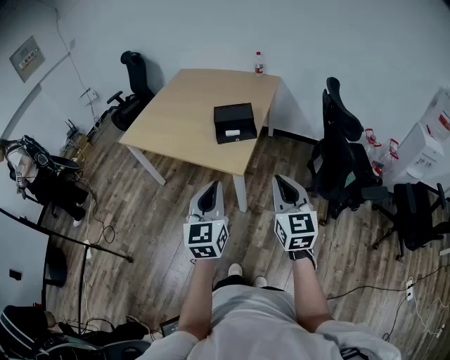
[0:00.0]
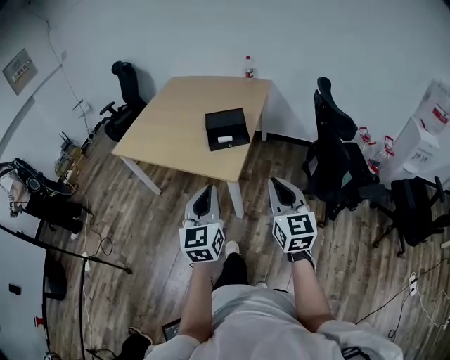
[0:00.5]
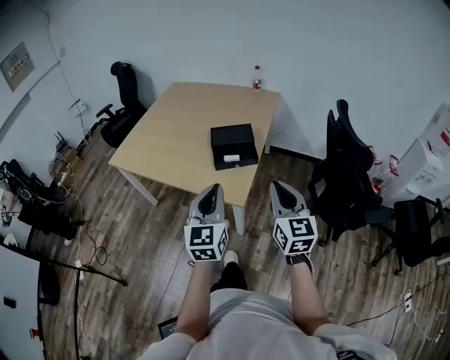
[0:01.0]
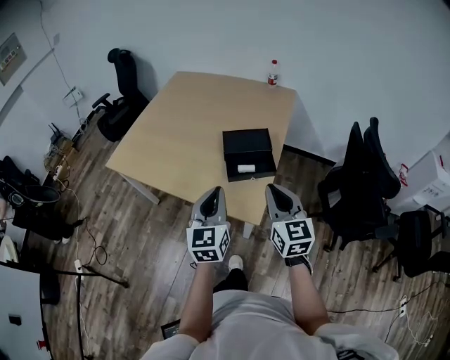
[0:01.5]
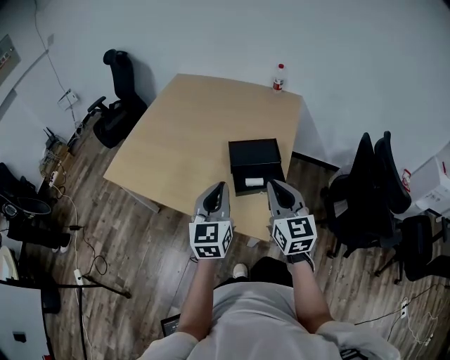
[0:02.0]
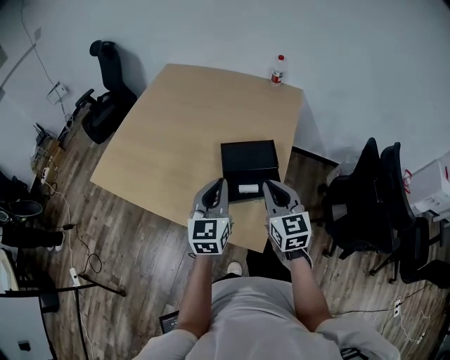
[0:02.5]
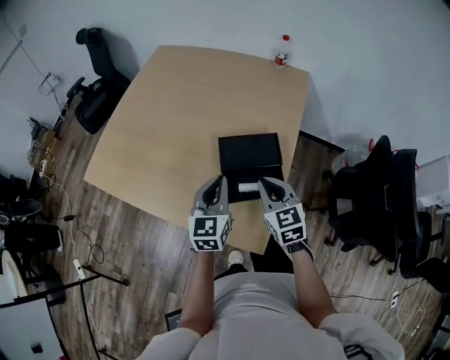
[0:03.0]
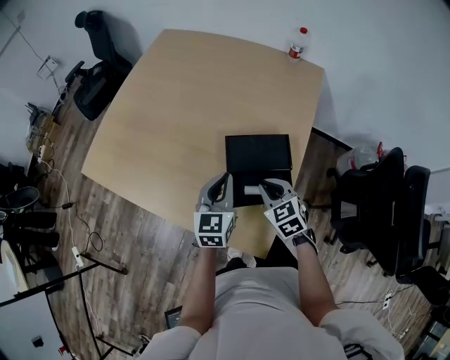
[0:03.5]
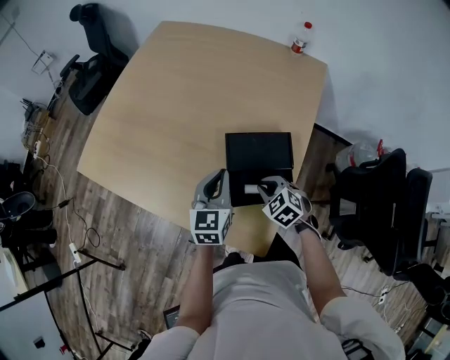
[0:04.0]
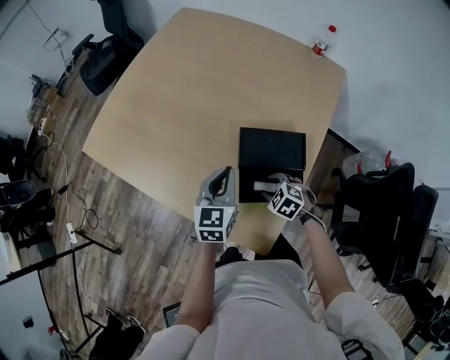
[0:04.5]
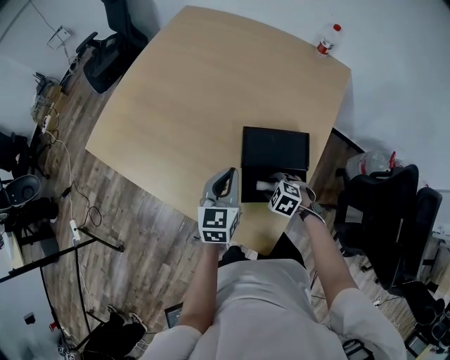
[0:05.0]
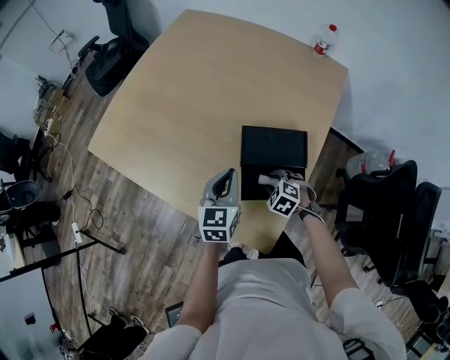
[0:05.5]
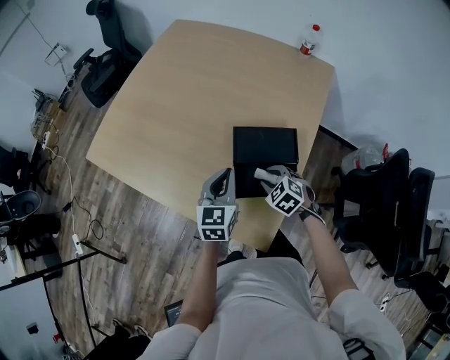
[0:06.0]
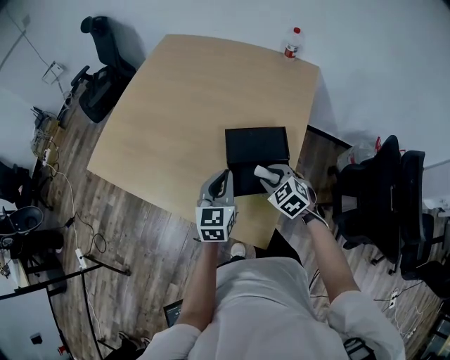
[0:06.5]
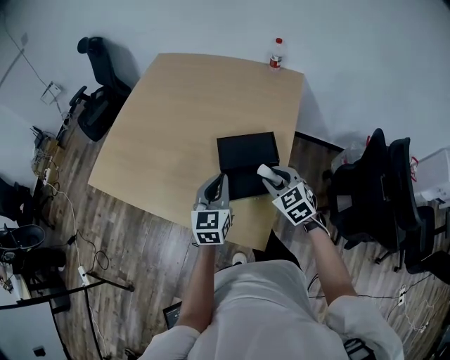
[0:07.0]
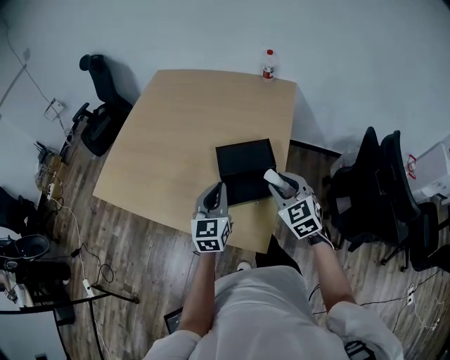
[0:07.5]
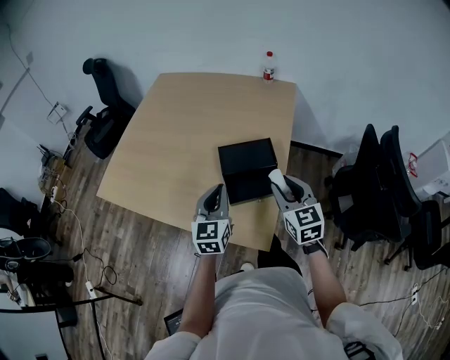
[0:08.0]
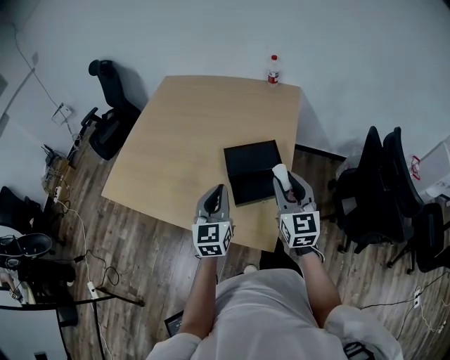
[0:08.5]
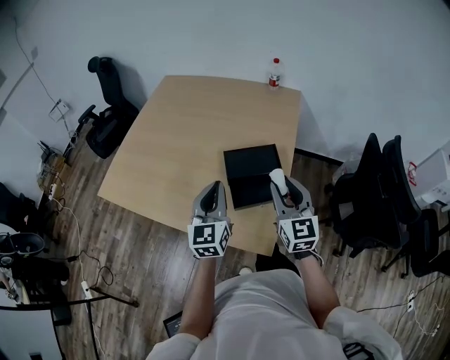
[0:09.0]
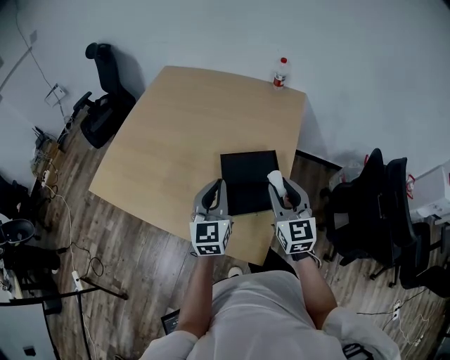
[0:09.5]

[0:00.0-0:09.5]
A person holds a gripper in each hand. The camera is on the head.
0:00.0 to 0:02.0: Both grippers move forward, some 35 cm.
0:02.0 to 0:04.0: The right gripper goes roughly 35 cm downward and forward, and angles its fingers downward, by approximately 50 degrees. Meanwhile the left gripper heads forward and downward, covering about 25 cm.
0:04.0 to 0:05.5: The right gripper travels downward by some 5 cm, and opens its fingers.
0:05.5 to 0:07.5: The right gripper goes some 25 cm upward, and angles its fingers upward, by about 40 degrees. Meanwhile the left gripper travels upward and backward by roughly 10 cm.
0:07.5 to 0:09.5: The left gripper changes place by some 5 cm, while the right gripper shifts by roughly 5 cm, and turns by approximately 30 degrees.

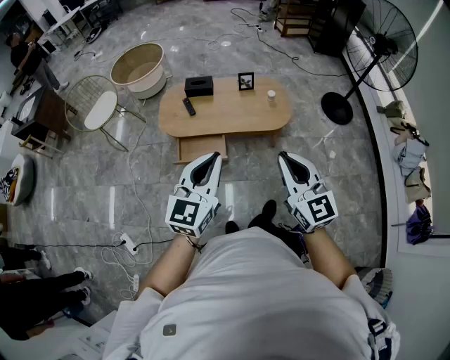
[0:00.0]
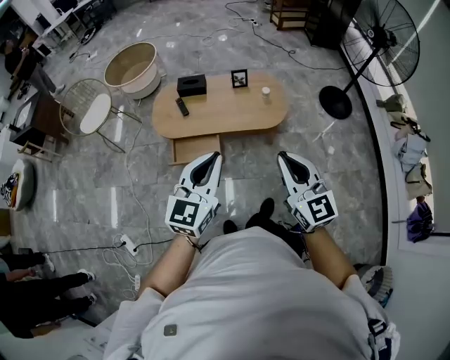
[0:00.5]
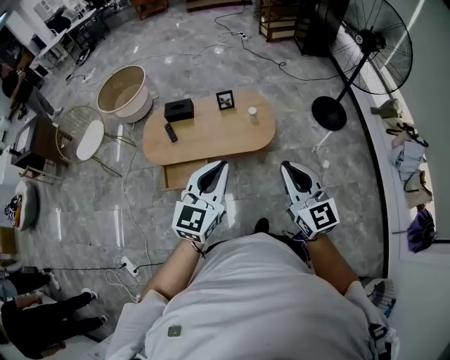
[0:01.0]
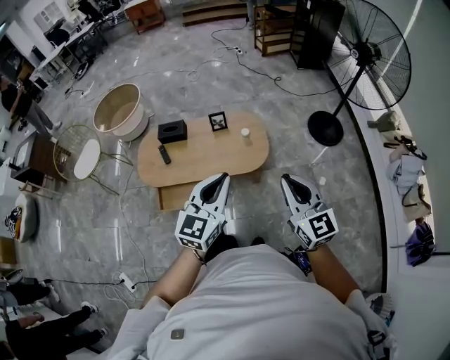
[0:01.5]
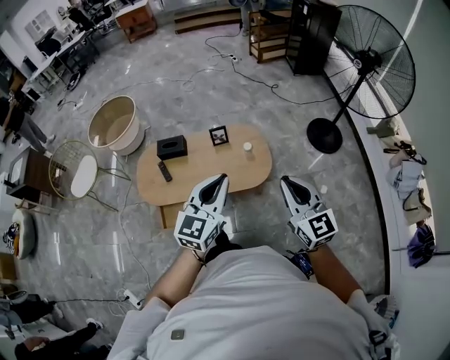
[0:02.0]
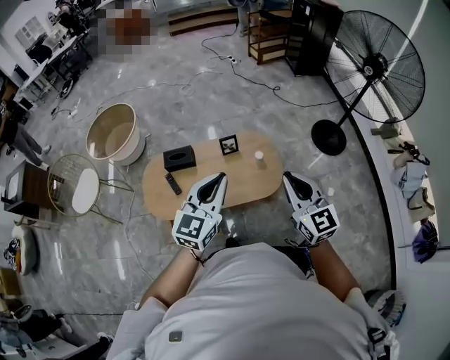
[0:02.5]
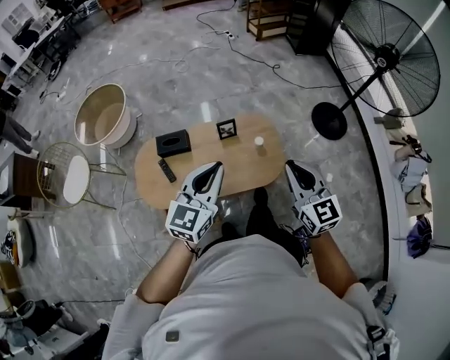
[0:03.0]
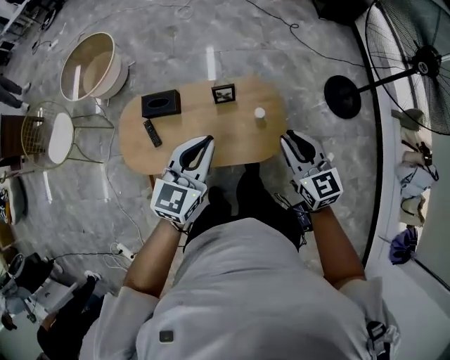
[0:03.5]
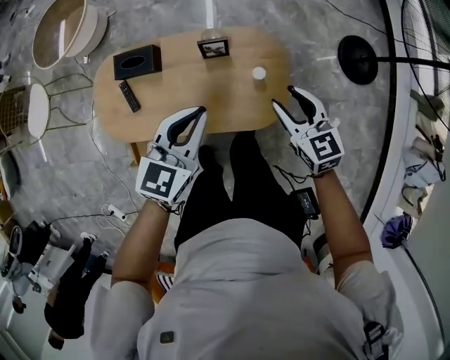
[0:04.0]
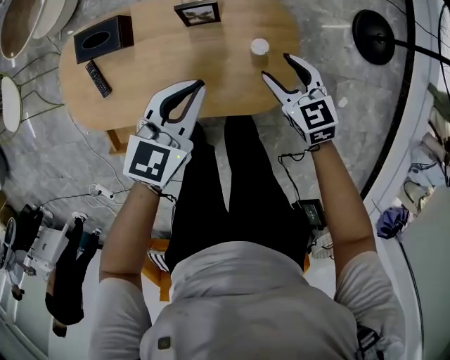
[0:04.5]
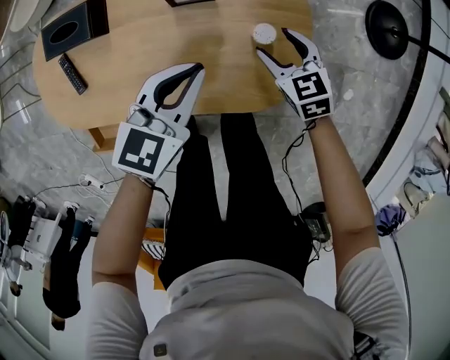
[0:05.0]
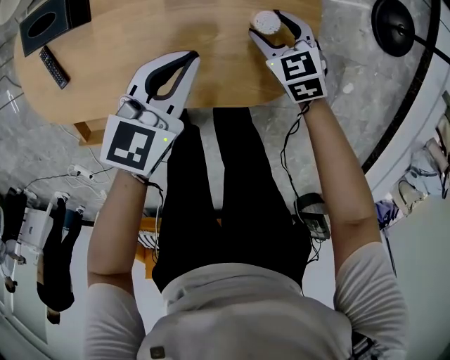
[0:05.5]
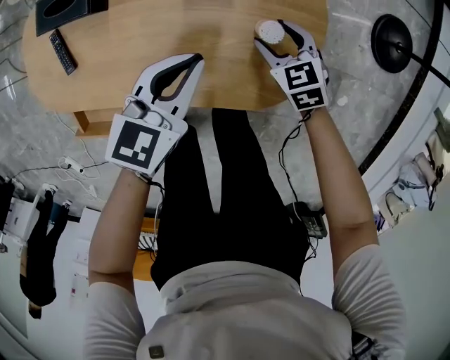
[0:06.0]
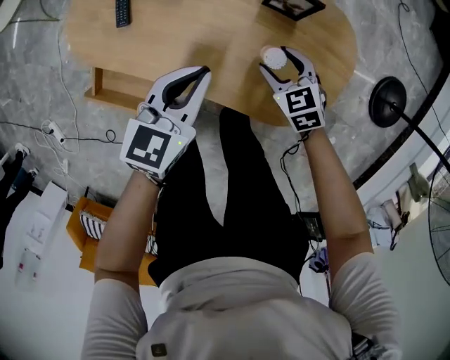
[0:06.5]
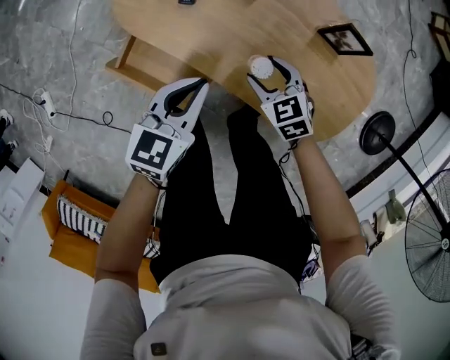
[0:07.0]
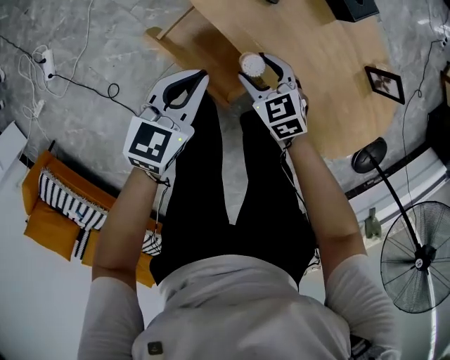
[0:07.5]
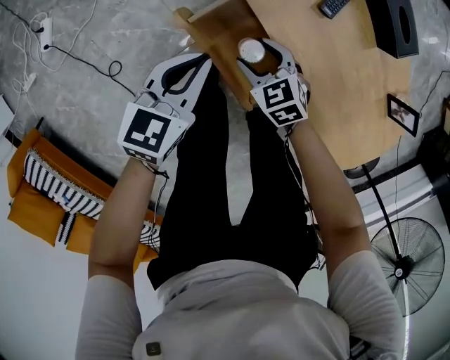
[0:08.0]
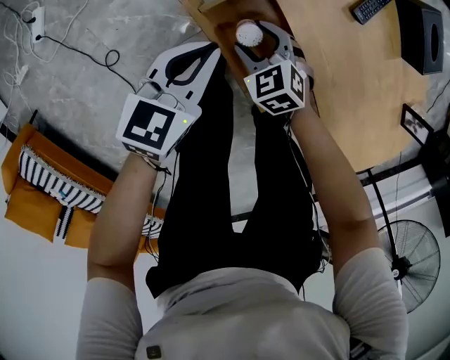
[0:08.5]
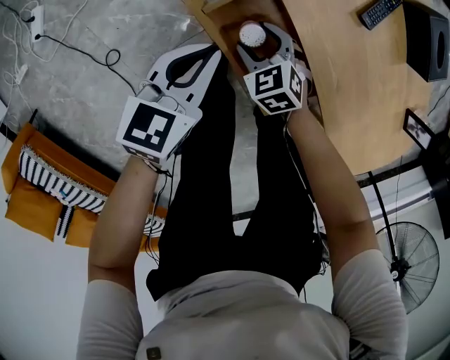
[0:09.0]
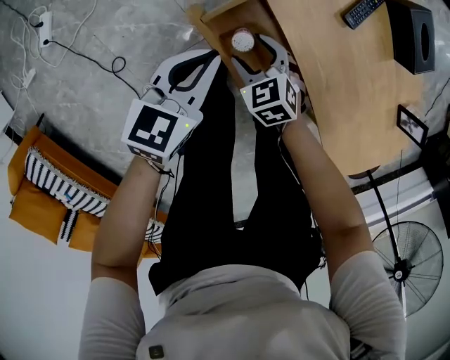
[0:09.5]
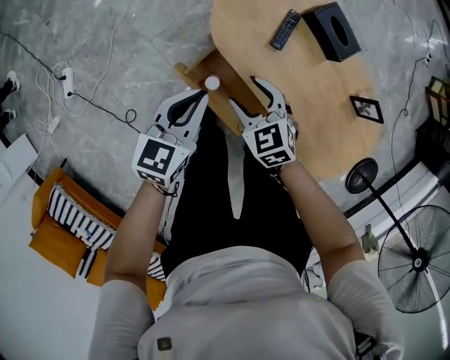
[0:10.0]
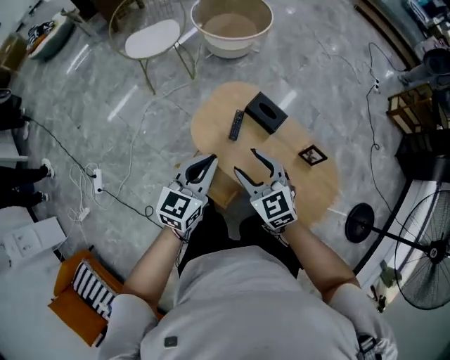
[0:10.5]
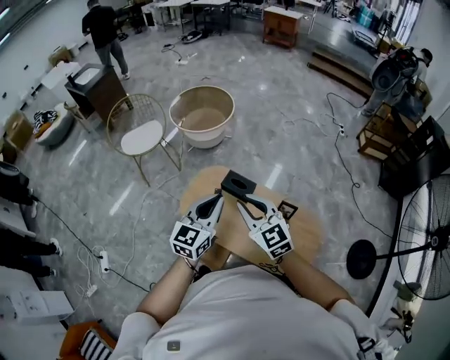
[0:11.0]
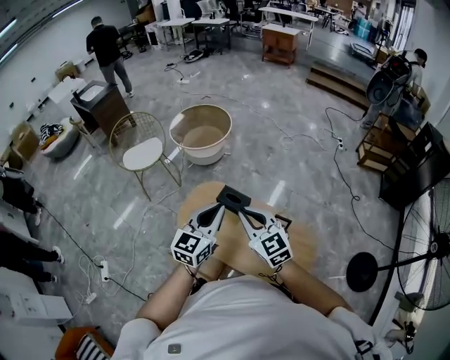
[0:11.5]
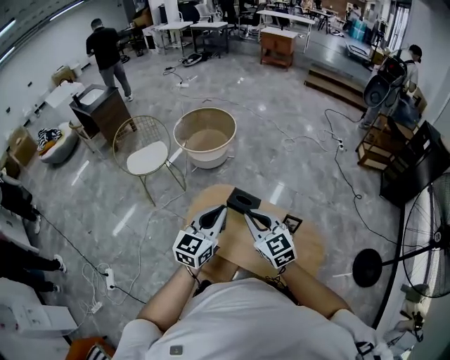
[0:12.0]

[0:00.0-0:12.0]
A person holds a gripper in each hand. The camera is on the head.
0:00.0 to 0:02.0: The grippers both shift forward and to the right by roughly 35 cm.
0:02.0 to 0:04.0: The grippers both shift forward and downward by some 50 cm. The right gripper changes its angle by about 30 degrees, and opens up. The left gripper changes its angle by some 20 degrees.
0:04.0 to 0:06.0: Both grippers travel together downward, roughly 35 cm. The right gripper swivels about 30 degrees.
0:06.0 to 0:08.0: Both grippers are carried about 60 cm. The right gripper turns by roughly 50 degrees, while the left gripper changes its angle by about 50 degrees.
0:08.0 to 0:10.0: The grippers both shift upward by approximately 15 cm.
0:10.0 to 0:12.0: Both grippers move upward and to the right, approximately 50 cm. The left gripper rotates roughly 30 degrees. Meanwhile the right gripper angles its fingers upward, by about 30 degrees, and closes.

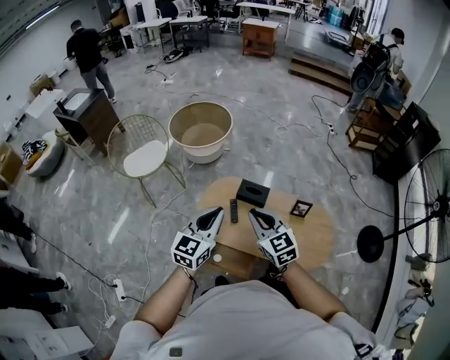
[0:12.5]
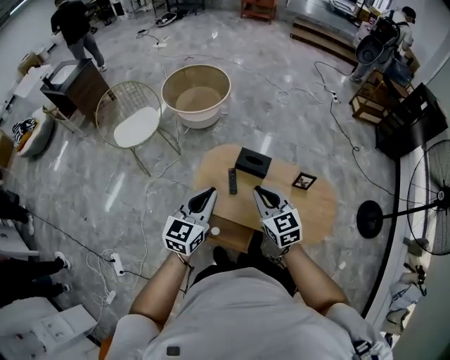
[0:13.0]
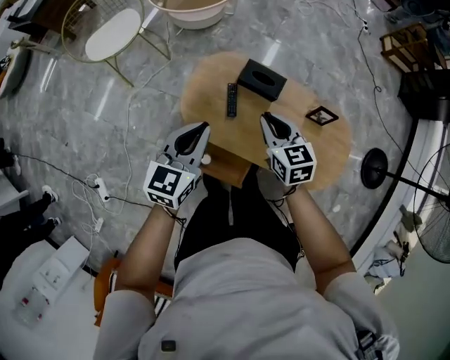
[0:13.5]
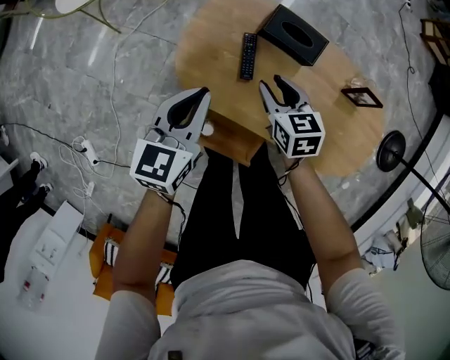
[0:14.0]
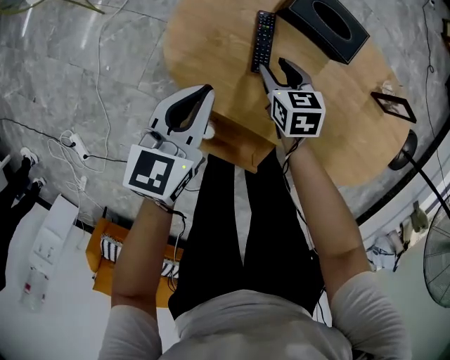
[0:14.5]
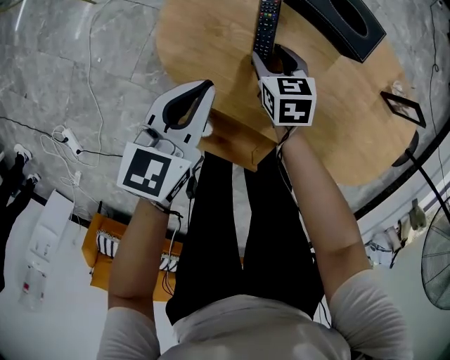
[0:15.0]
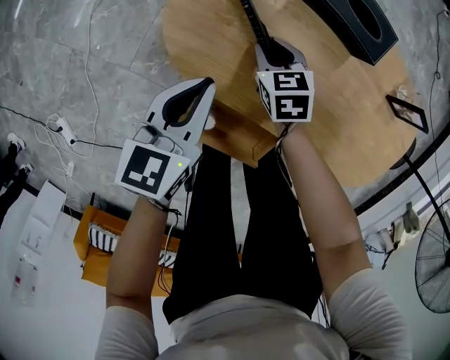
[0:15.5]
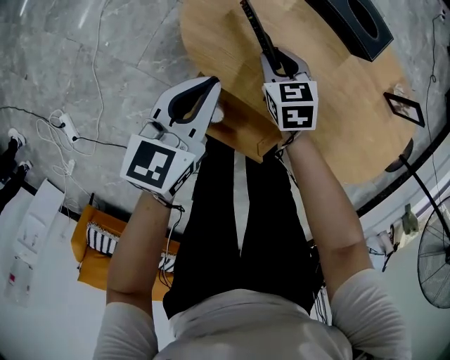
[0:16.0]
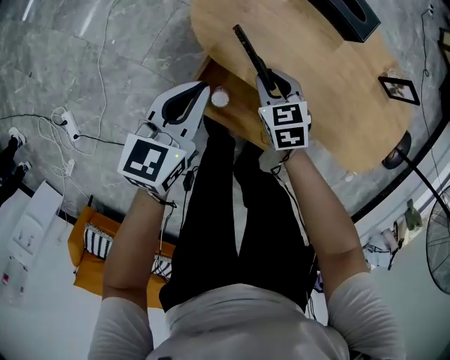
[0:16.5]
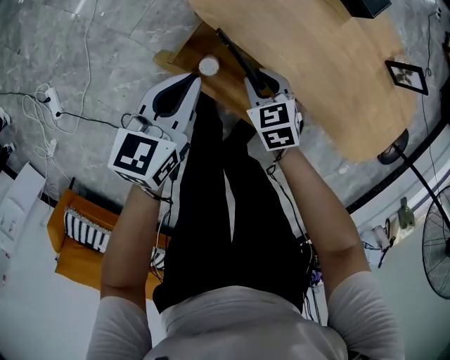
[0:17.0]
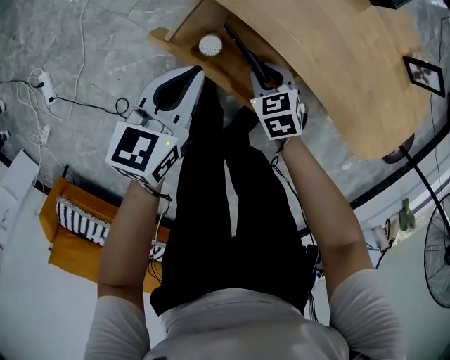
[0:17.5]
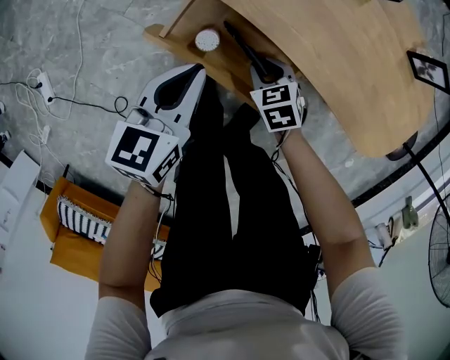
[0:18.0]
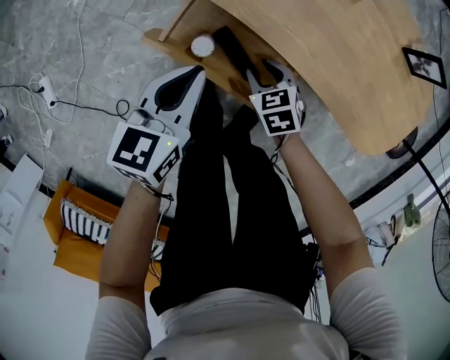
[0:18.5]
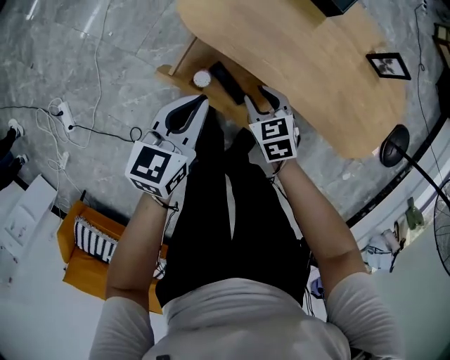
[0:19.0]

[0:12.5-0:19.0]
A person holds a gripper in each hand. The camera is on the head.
0:12.5 to 0:14.5: The grippers both shift downward by some 60 cm. The right gripper tips its fingers downward by about 30 degrees, and opens its fingers. The left gripper changes its angle by approximately 30 degrees.
0:14.5 to 0:17.0: Both grippers move backward, roughly 20 cm. The right gripper rotates some 30 degrees.
0:17.0 to 0:19.0: The left gripper moves approximately 5 cm; the right gripper moves roughly 10 cm downward and comes back.
